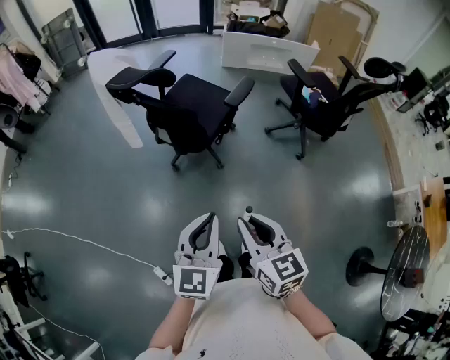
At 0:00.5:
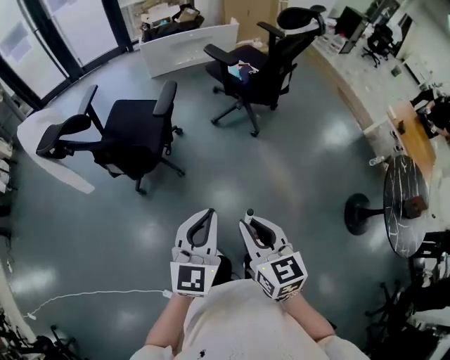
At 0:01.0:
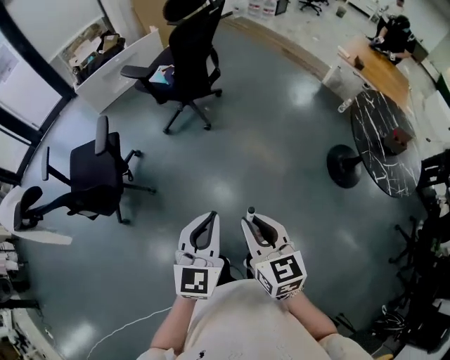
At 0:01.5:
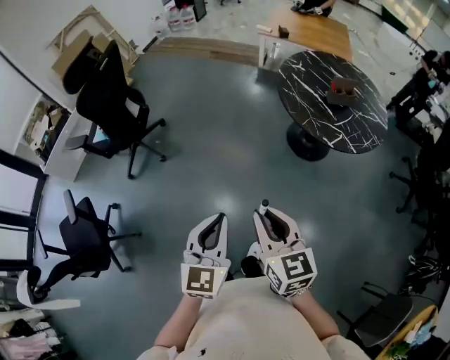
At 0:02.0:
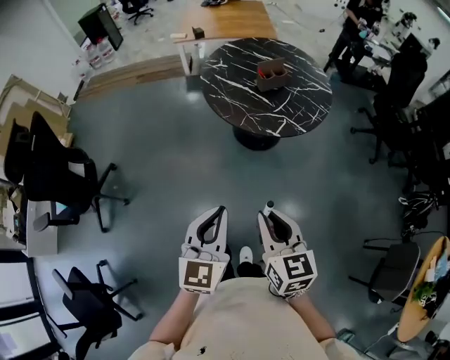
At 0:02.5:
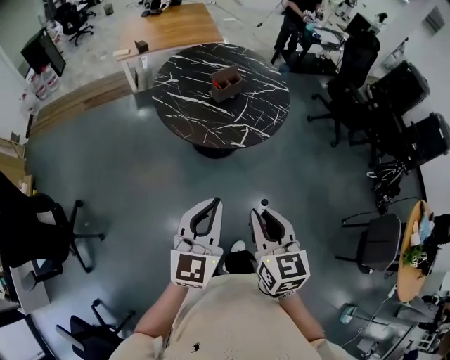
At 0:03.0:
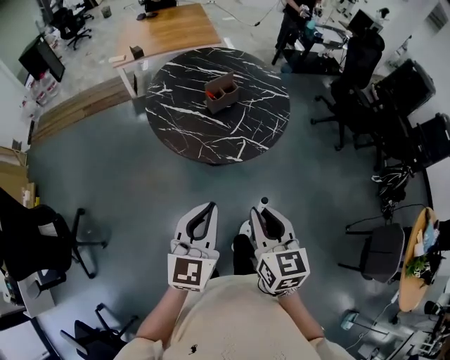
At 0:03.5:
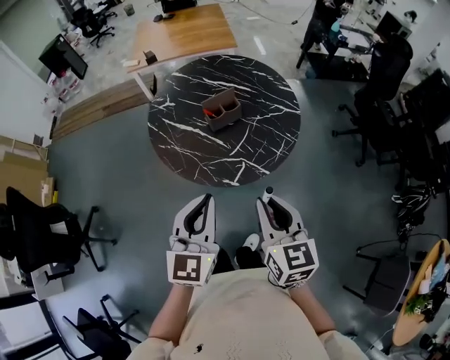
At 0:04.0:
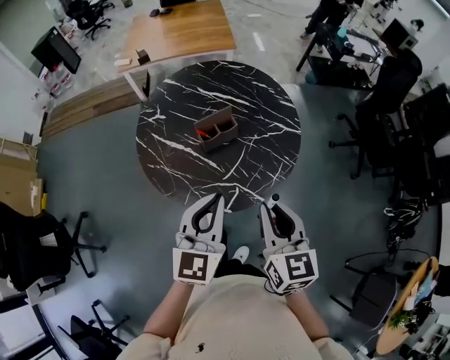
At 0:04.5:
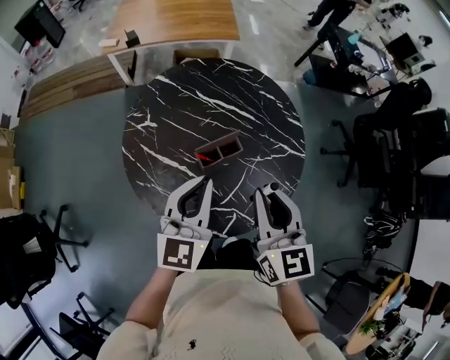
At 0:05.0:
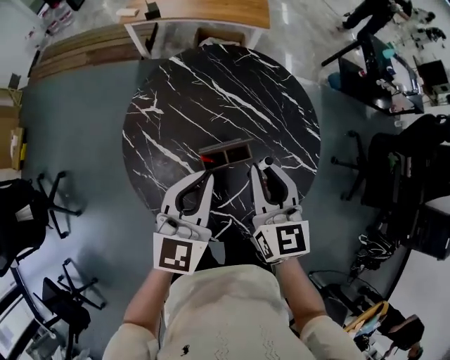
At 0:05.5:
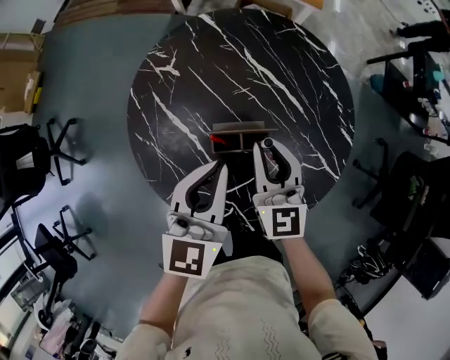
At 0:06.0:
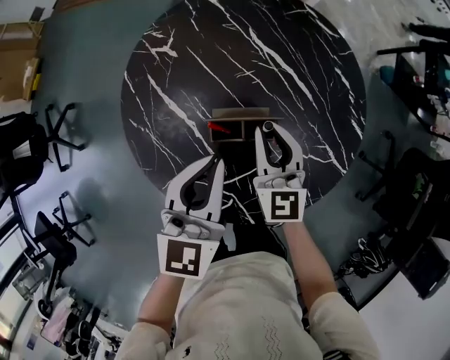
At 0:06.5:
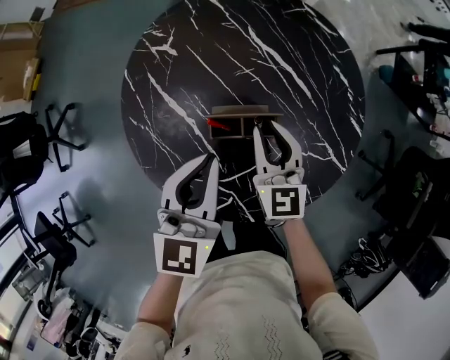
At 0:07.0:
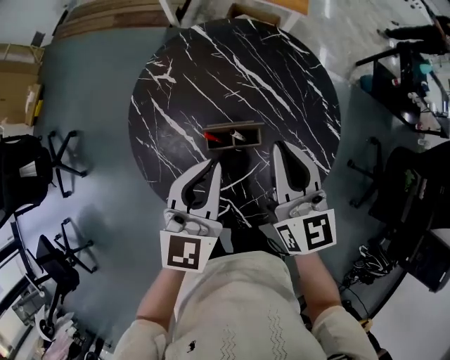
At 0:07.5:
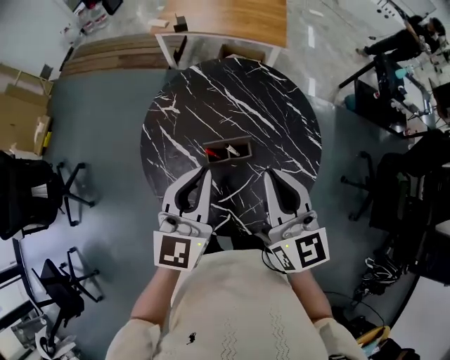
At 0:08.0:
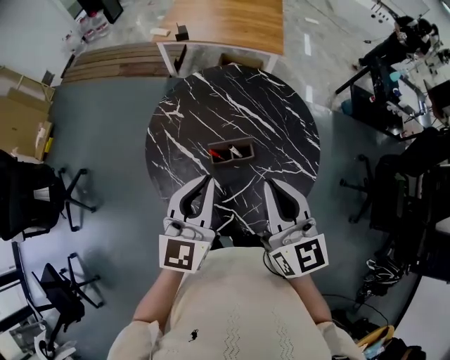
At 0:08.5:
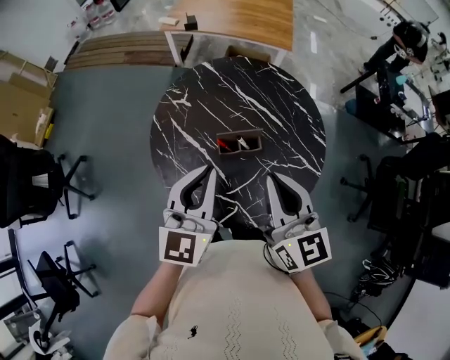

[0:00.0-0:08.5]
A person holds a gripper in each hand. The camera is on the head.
0:00.0 to 0:02.0: The pair of grippers is taken about 80 cm. The left gripper swivels some 90 degrees. The right gripper changes its angle by about 90 degrees.
0:02.0 to 0:04.0: The two grippers travel together, forward, approximately 50 cm.
0:04.0 to 0:06.5: The left gripper moves about 30 cm, and turns by about 30 degrees, while the right gripper shifts by approximately 40 cm, and rotates some 30 degrees.
0:06.5 to 0:08.5: The right gripper travels upward and backward by about 30 cm. The left gripper heads upward and backward, covering about 20 cm.

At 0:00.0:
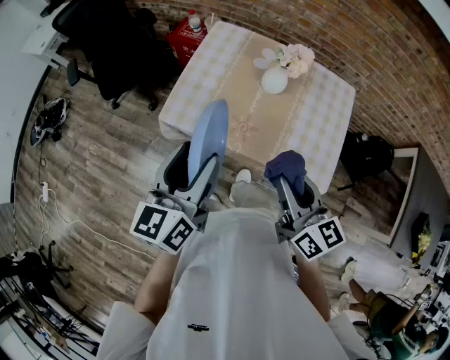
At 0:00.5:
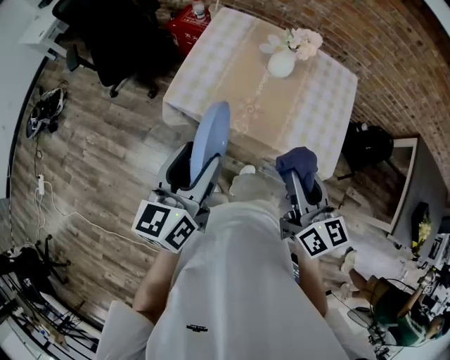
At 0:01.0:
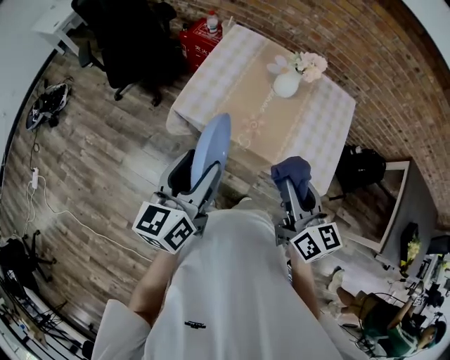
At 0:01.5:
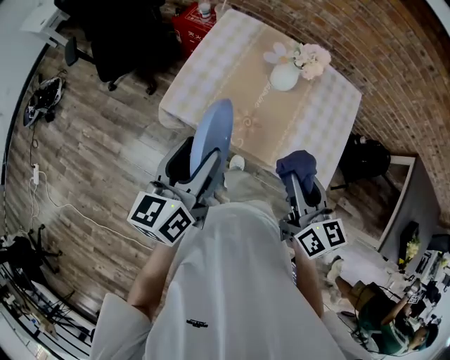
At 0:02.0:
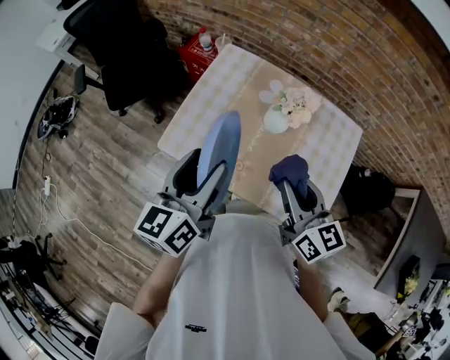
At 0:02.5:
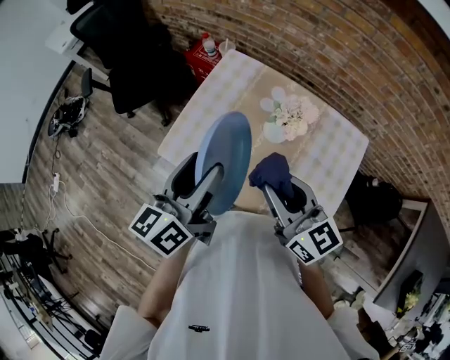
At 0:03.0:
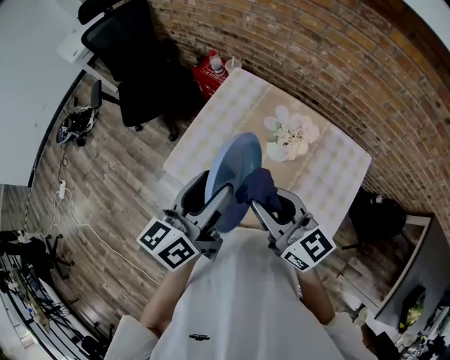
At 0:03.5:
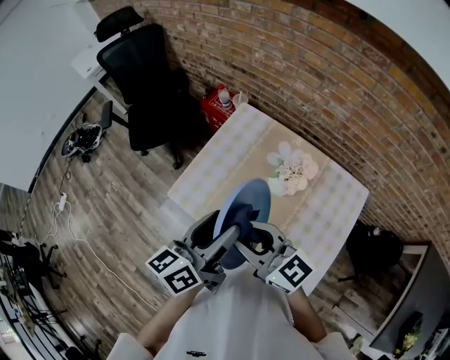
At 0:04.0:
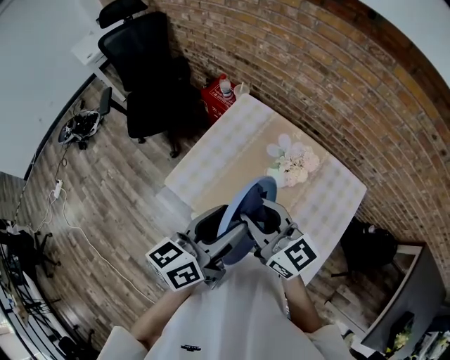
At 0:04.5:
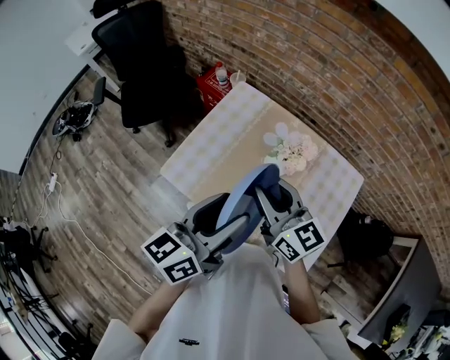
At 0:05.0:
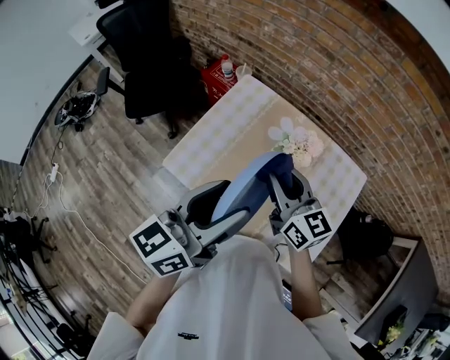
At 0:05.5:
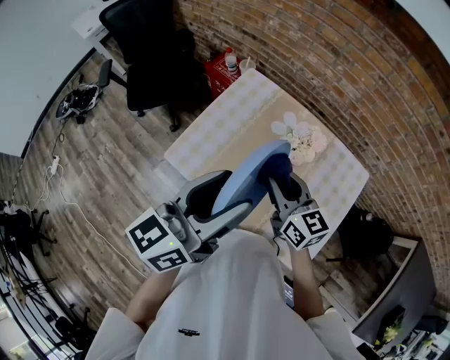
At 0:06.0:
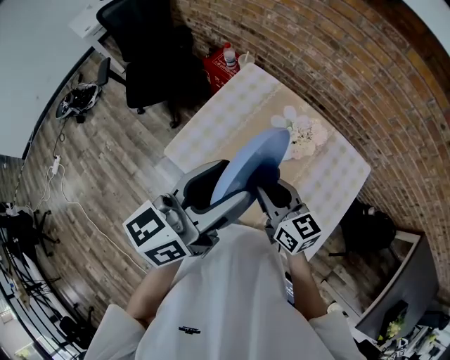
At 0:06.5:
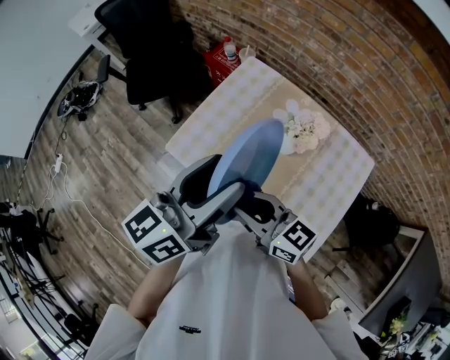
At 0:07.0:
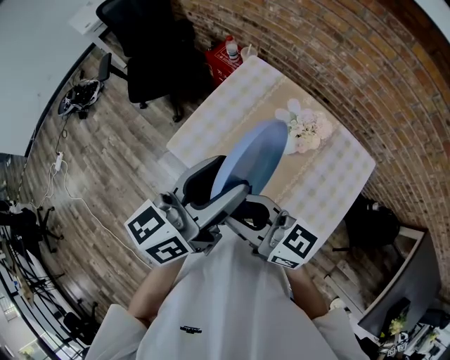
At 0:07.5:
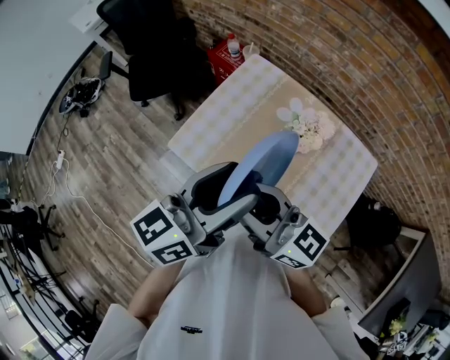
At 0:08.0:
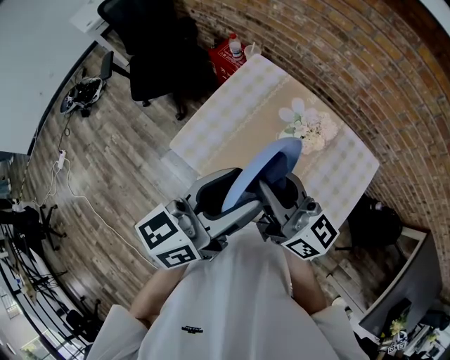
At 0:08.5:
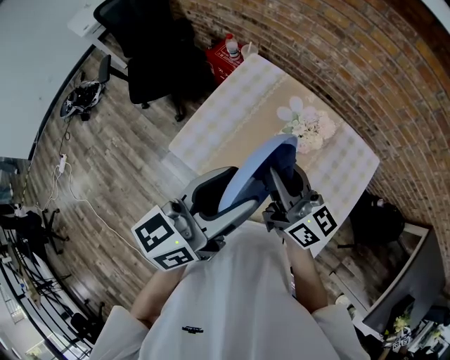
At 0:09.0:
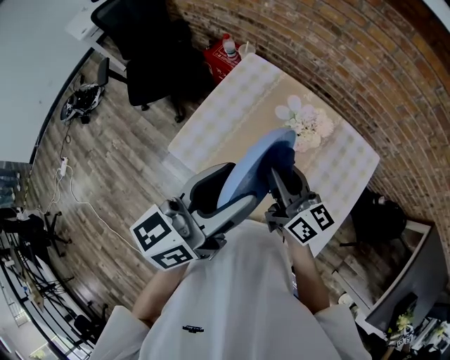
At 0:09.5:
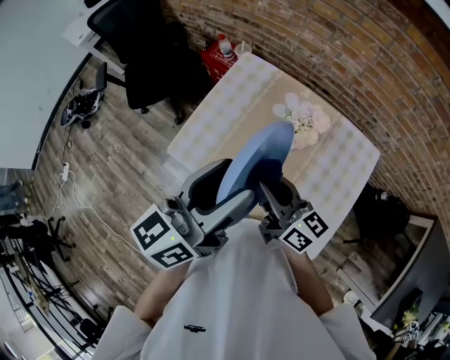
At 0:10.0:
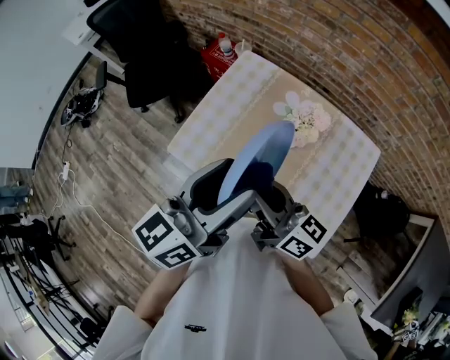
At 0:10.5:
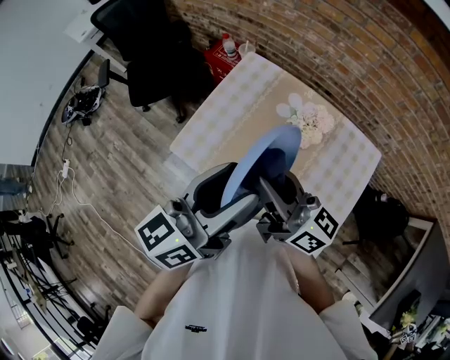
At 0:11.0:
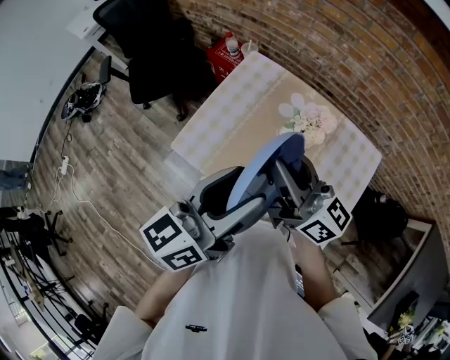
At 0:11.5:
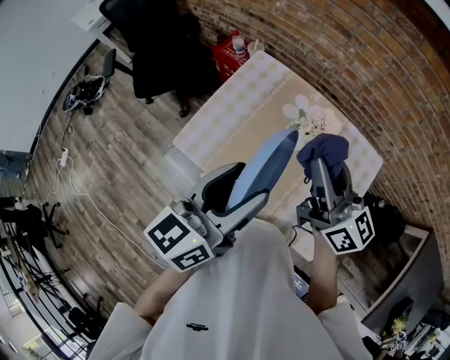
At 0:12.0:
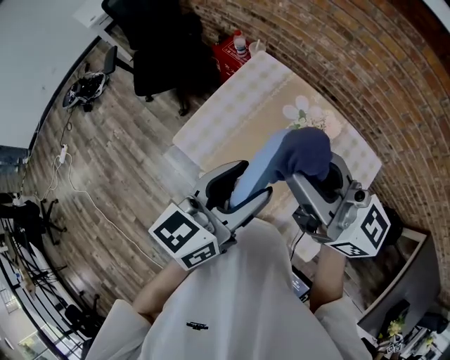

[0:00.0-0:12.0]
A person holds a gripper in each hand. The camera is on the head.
0:00.0 to 0:02.0: Both grippers travel together forward, some 15 cm.
0:02.0 to 0:04.0: The right gripper travels forward and to the left by some 10 cm, and turns by some 30 degrees. The left gripper travels to the right by approximately 10 cm.
0:04.0 to 0:06.0: The right gripper moves downward, about 10 cm, while the left gripper travels upward by some 5 cm.
0:06.0 to 0:08.0: The right gripper travels upward by some 10 cm, and changes its angle by some 30 degrees.
0:08.0 to 0:10.0: The right gripper is displaced downward by some 5 cm.
0:10.0 to 0:12.0: The right gripper moves upward, about 15 cm, and turns by approximately 30 degrees.

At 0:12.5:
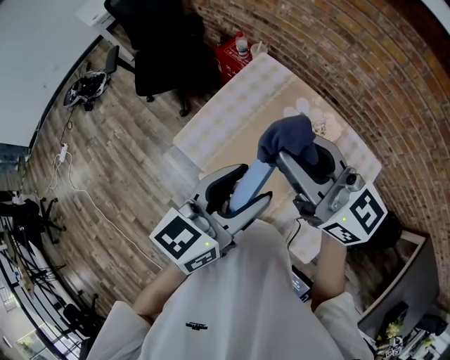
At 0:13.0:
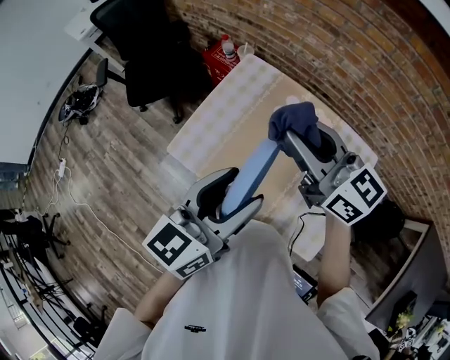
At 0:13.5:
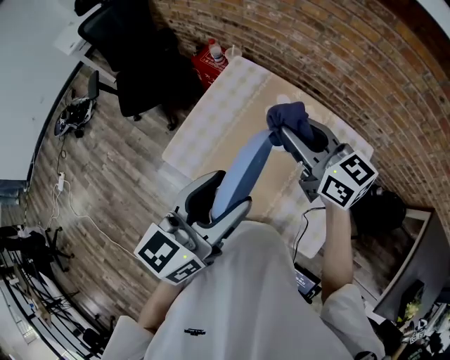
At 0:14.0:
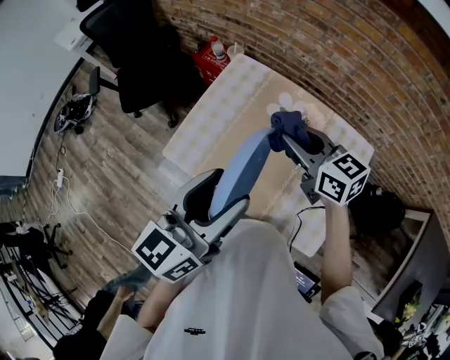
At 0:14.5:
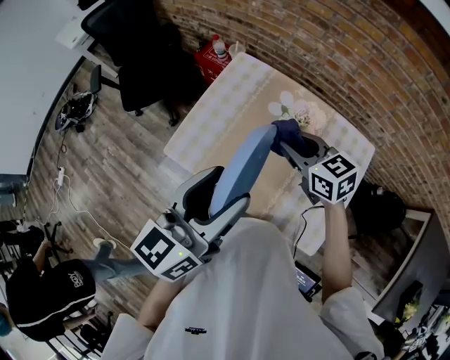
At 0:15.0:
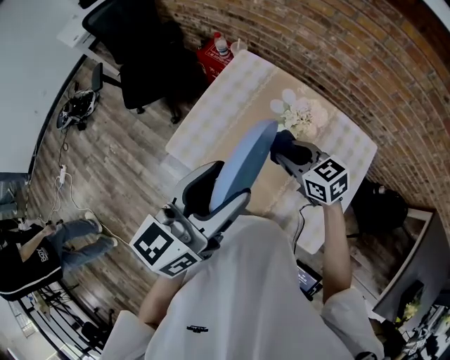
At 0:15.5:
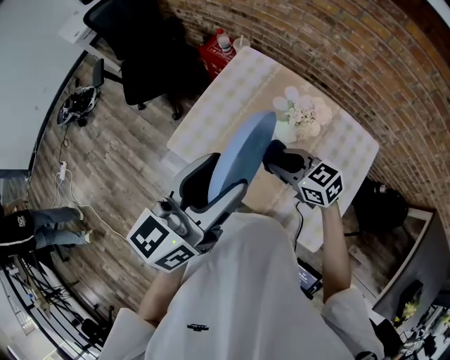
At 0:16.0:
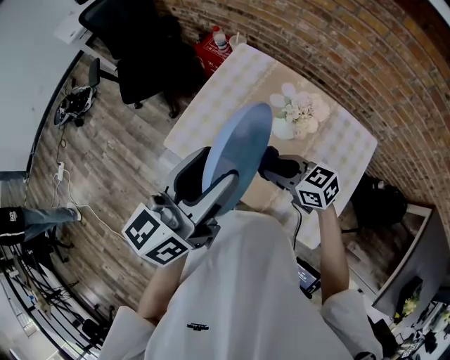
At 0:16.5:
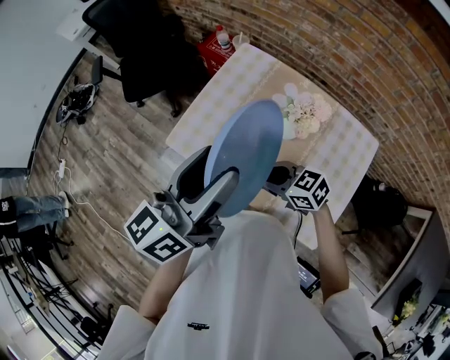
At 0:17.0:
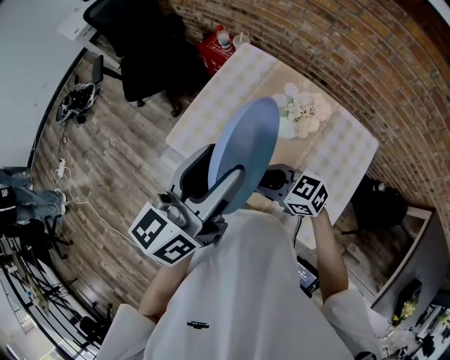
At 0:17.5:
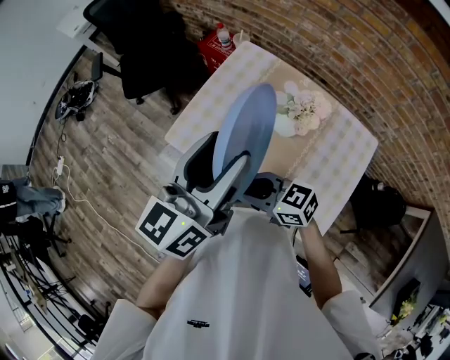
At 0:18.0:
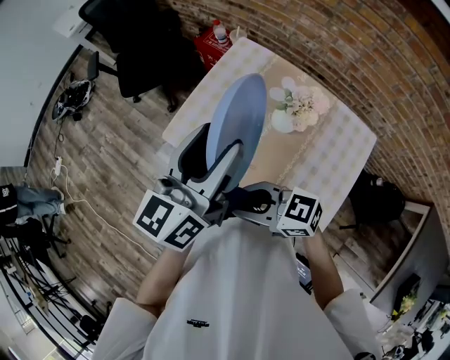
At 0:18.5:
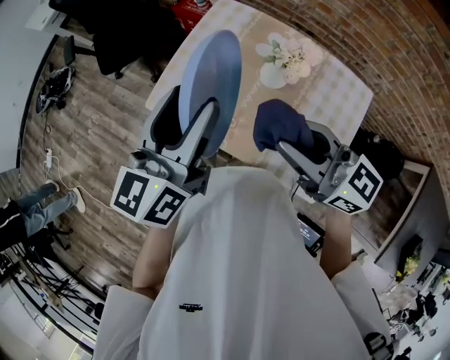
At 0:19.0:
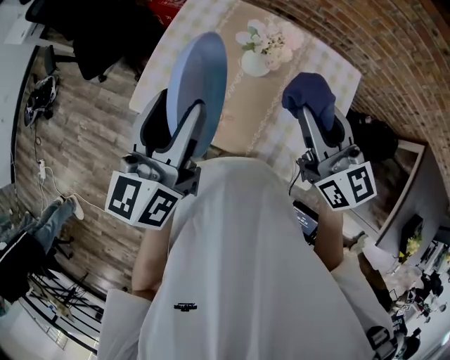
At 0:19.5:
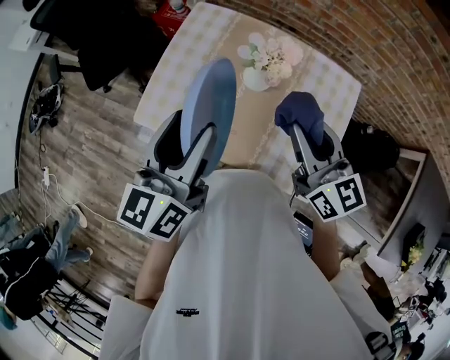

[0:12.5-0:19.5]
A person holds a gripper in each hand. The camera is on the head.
0:12.5 to 0:14.5: The right gripper is displaced downward by some 20 cm, and tips its fingers downward by roughly 30 degrees.
0:14.5 to 0:16.0: The right gripper goes about 15 cm backward, downward and to the left.
0:16.0 to 0:17.5: The right gripper goes about 10 cm to the left.
0:17.5 to 0:19.5: The left gripper heads downward, covering some 5 cm, while the right gripper shifts by about 20 cm, and rotates about 60 degrees.
